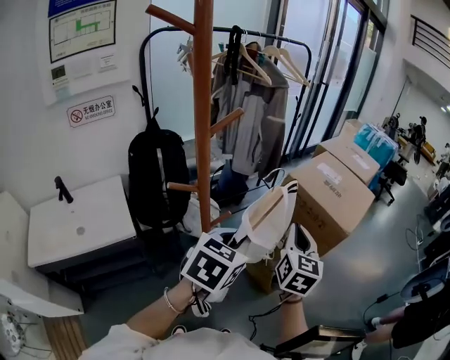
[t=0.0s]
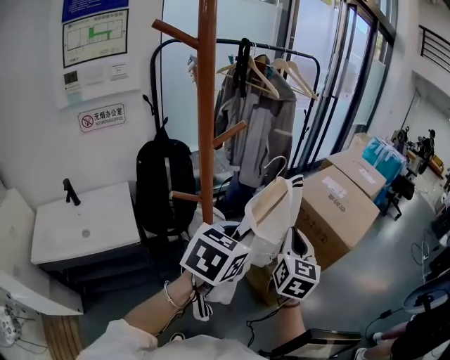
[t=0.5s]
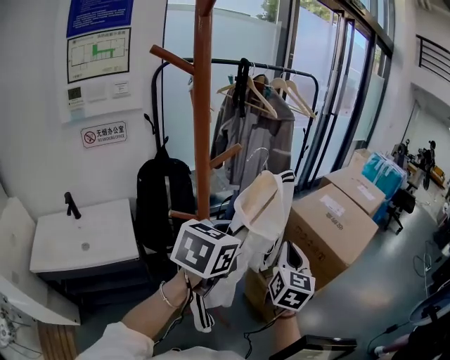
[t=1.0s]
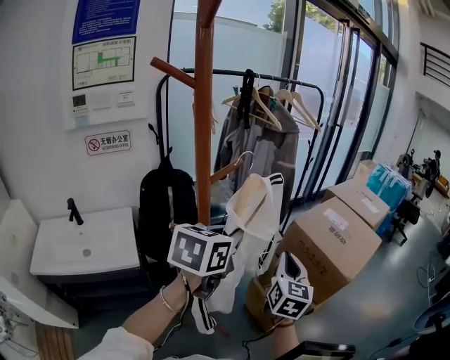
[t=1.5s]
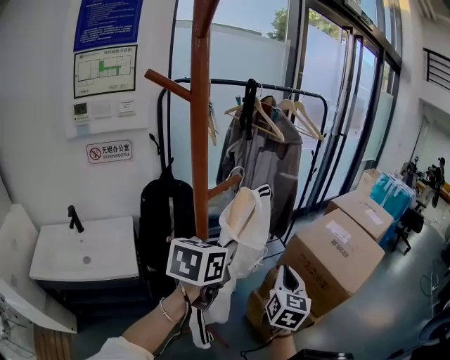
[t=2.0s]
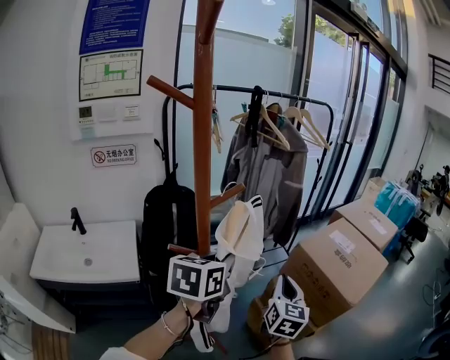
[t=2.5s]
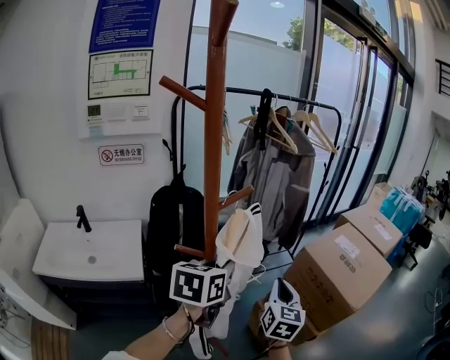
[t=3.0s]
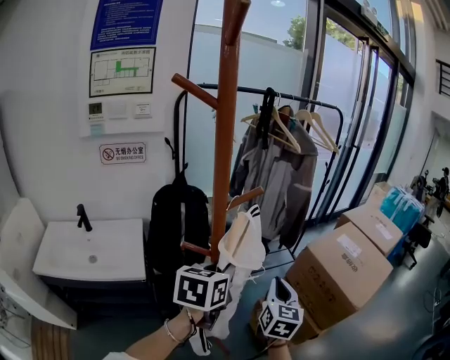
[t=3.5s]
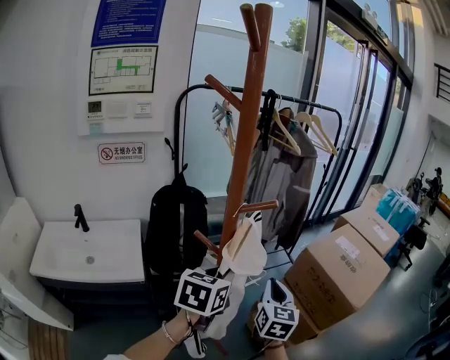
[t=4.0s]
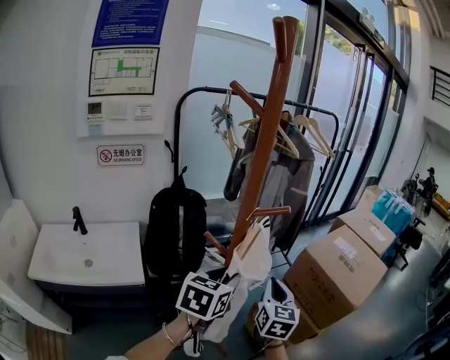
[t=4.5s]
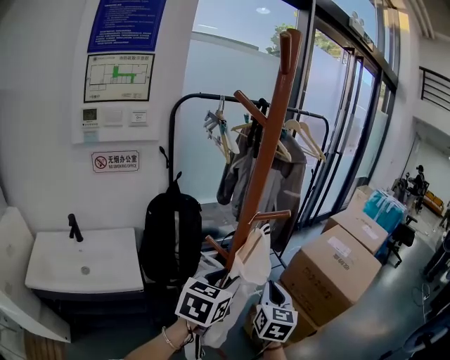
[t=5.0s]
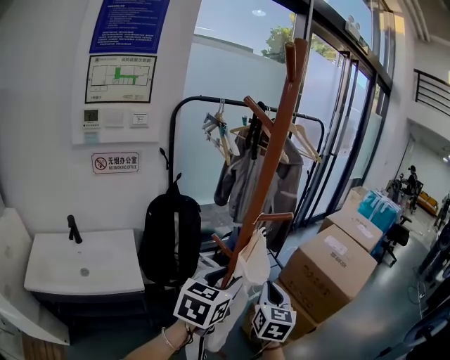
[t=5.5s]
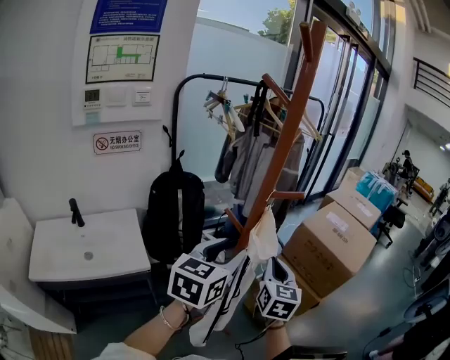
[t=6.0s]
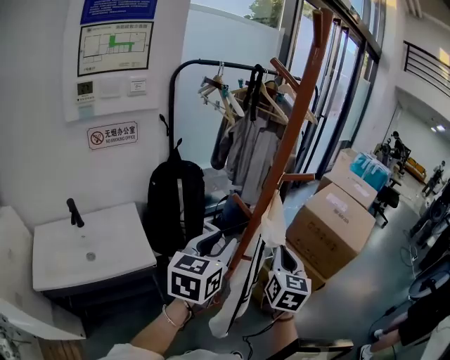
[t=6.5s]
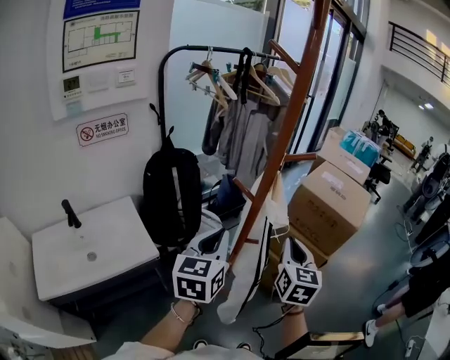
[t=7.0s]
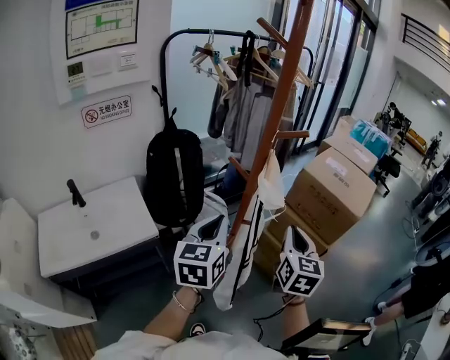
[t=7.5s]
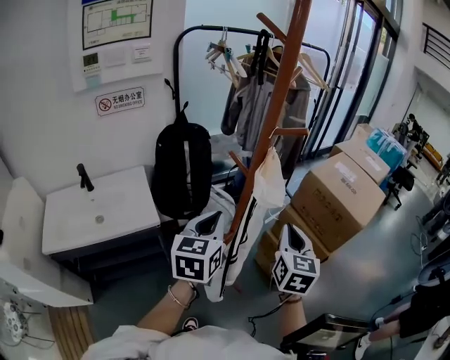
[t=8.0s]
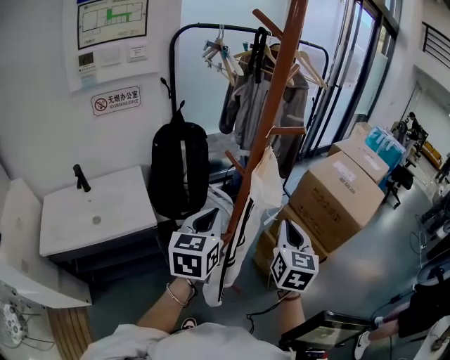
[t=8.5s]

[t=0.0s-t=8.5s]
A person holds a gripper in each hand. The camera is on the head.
t=0.0s to t=2.0s: The left gripper travels forward, to the left and upward by roughly 15 cm, and rotates about 20 degrees. Meanwhile the right gripper heads forward, covering approximately 5 cm.
t=2.0s to t=4.0s: The left gripper is displaced downward by about 5 cm. The right gripper heads to the left, covering roughly 10 cm.
t=4.0s to t=6.5s: The left gripper moves backward and to the left, some 10 cm, and opens up. Meanwhile the right gripper travels backward by approximately 10 cm.
t=6.5s to t=8.5s: The right gripper ends up some 5 cm from where it was; the left gripper travels downward by some 5 cm, and closes its fingers.

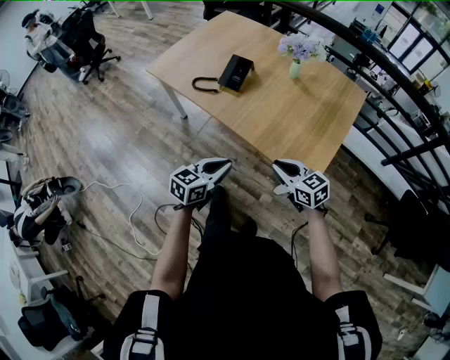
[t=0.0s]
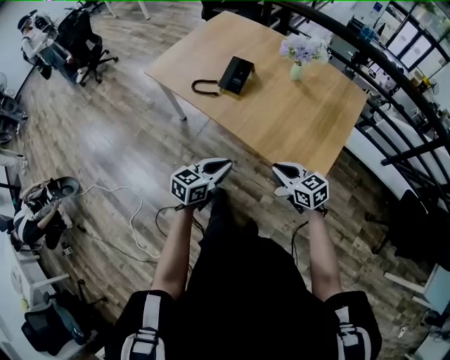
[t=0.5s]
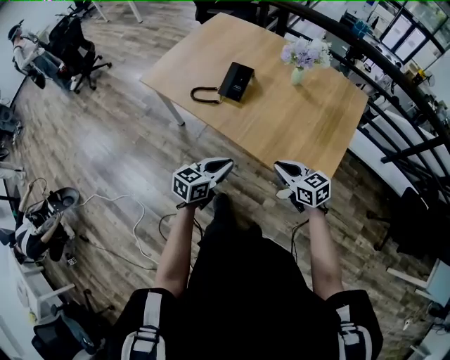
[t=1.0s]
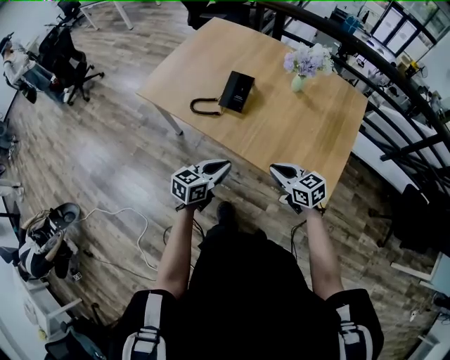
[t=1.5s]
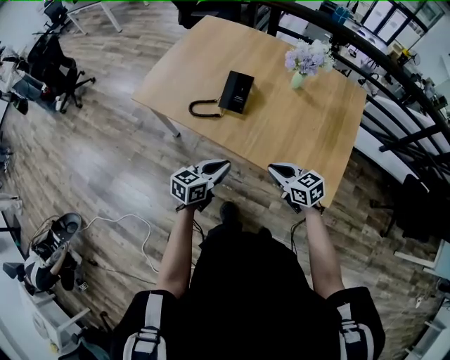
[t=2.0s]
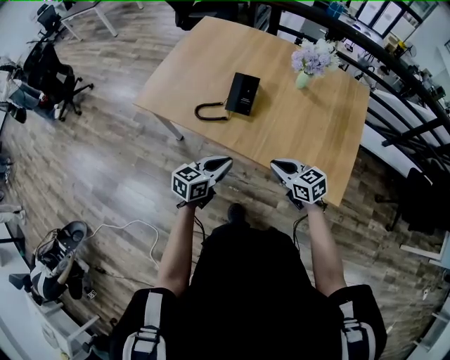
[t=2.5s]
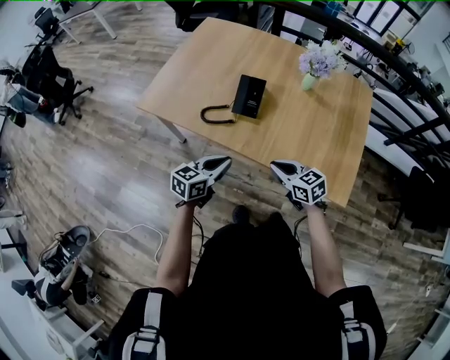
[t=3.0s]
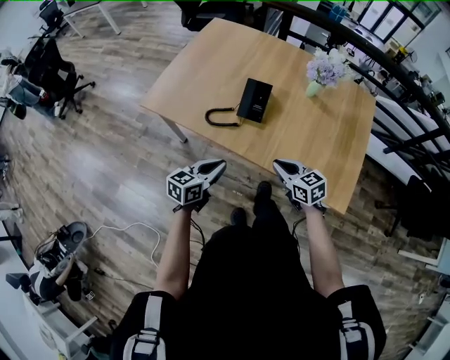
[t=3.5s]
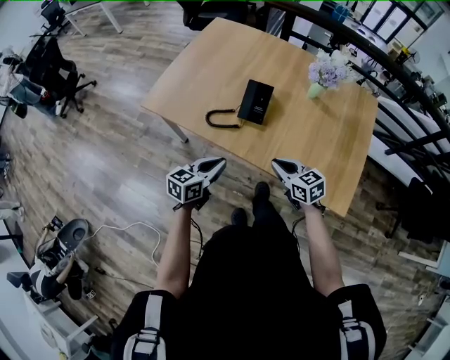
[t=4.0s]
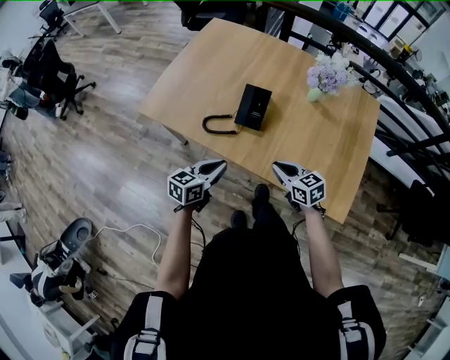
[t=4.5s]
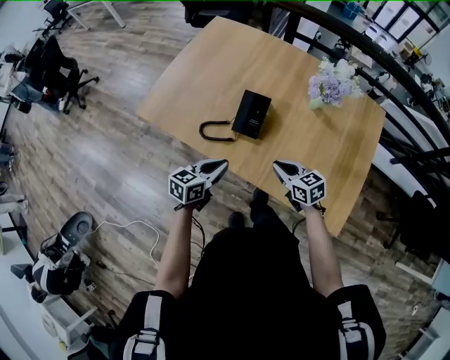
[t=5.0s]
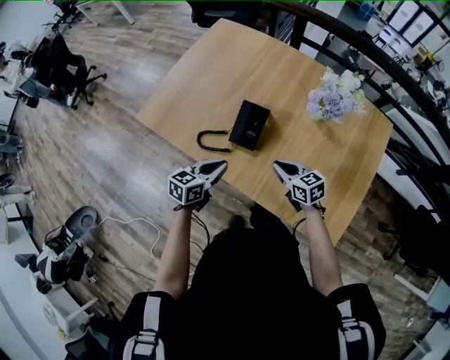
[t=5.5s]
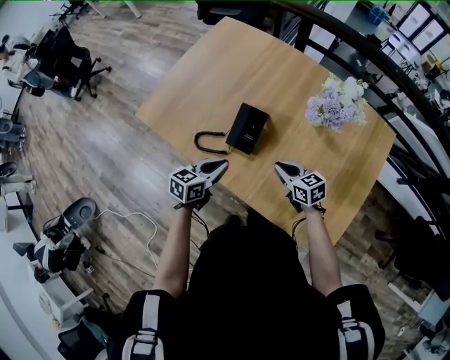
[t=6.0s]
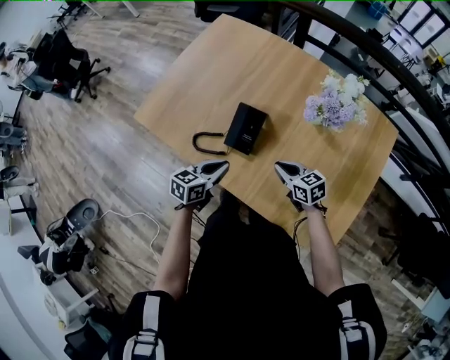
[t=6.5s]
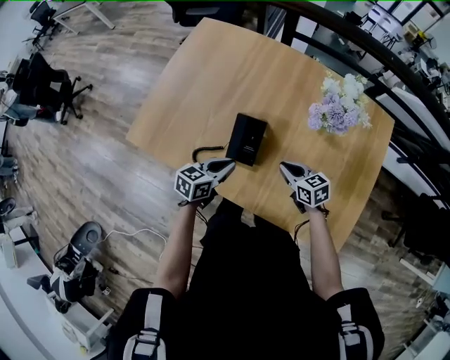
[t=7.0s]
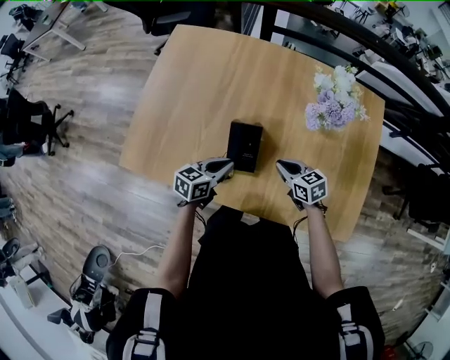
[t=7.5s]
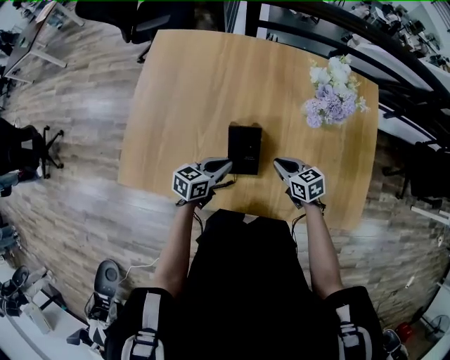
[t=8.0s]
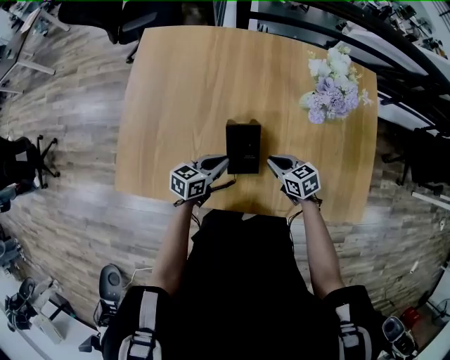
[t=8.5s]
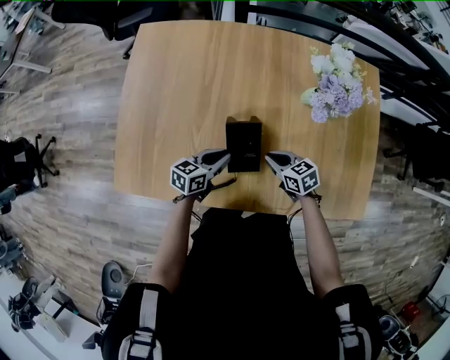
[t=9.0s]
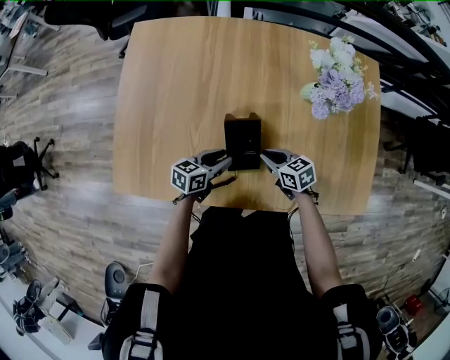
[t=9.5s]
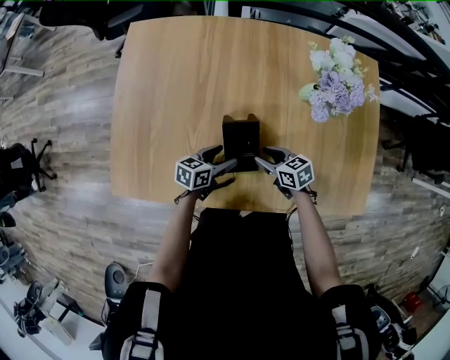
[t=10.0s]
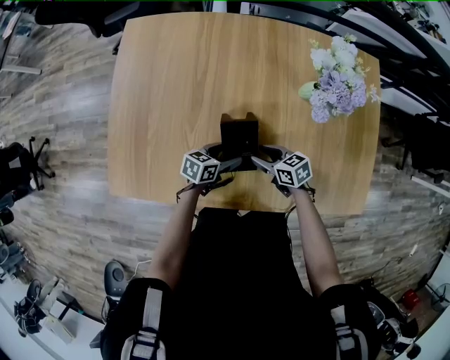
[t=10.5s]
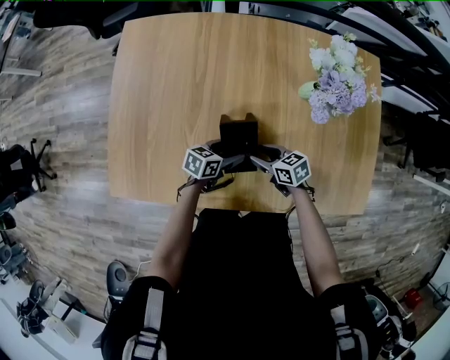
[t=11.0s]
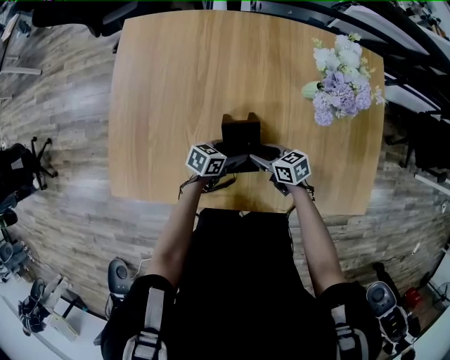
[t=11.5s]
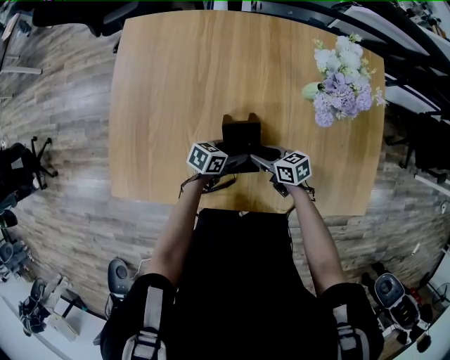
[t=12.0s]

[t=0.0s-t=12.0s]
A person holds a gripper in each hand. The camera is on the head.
t=0.0s to t=2.0s: The two grippers go some 15 cm forward and to the left.
t=2.0s to t=4.0s: Both grippers move to the left and forward, roughly 10 cm.
t=4.0s to t=6.0s: Both grippers move forward and to the right, about 20 cm.
t=6.0s to t=8.0s: The right gripper moves some 10 cm, and swivels approximately 30 degrees; the left gripper changes place by roughly 15 cm, and changes its angle by approximately 30 degrees.
t=8.0s to t=10.0s: The grippers both shift downward by about 5 cm. The right gripper opens, while the left gripper opens up.
t=10.0s to t=12.0s: The left gripper changes place by roughly 5 cm.

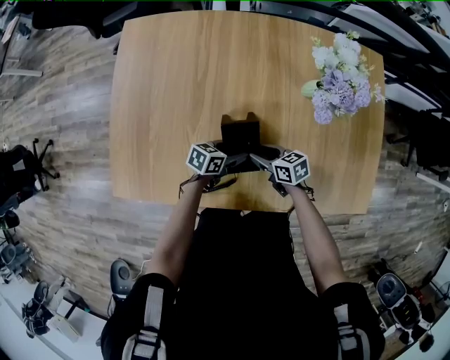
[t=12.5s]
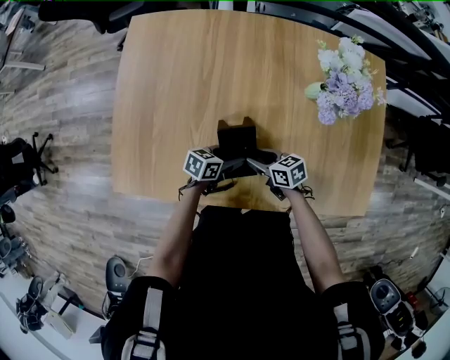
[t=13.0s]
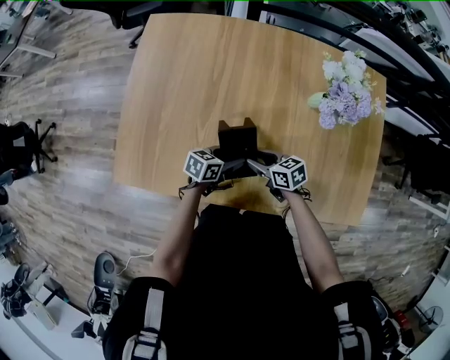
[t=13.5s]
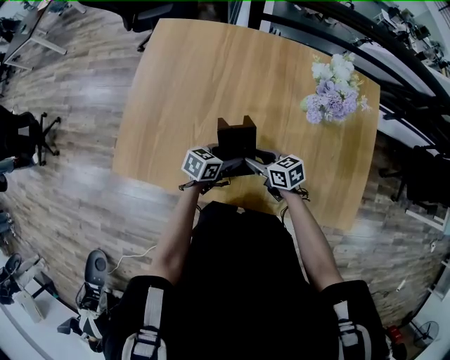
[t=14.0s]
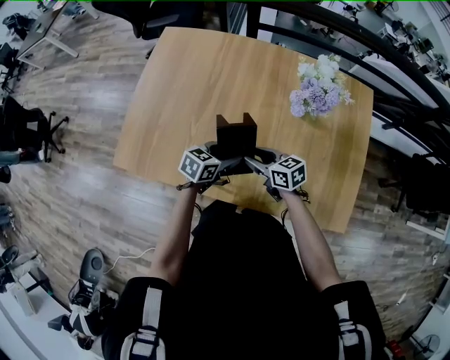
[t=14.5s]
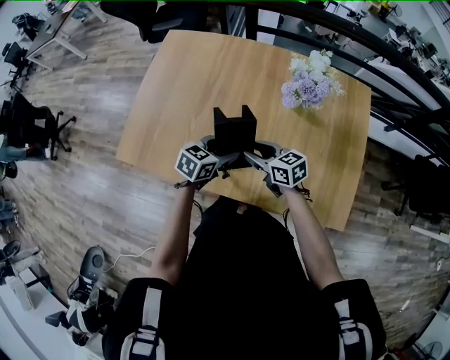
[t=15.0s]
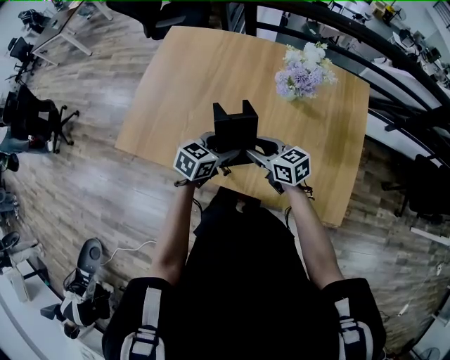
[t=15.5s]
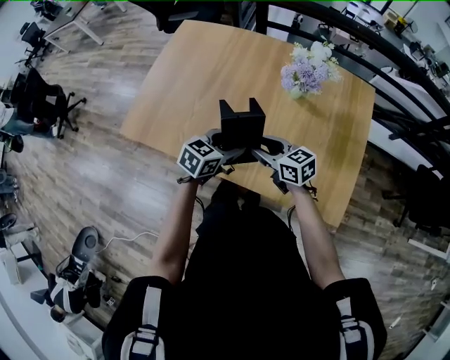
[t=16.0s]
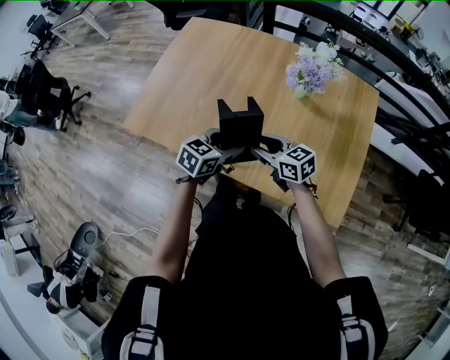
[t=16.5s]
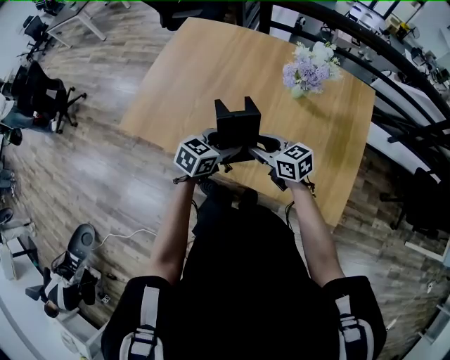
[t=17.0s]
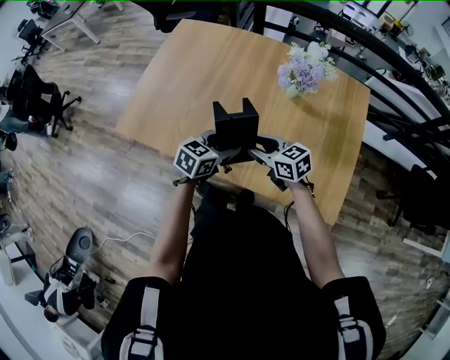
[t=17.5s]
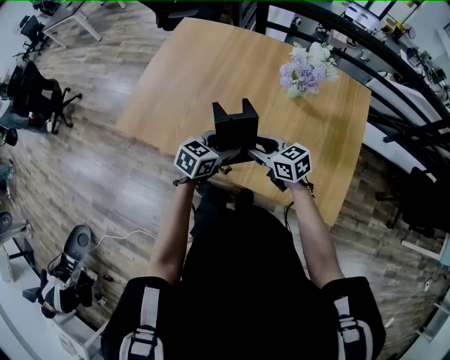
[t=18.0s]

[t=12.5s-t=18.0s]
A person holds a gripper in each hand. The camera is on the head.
t=12.5s to t=14.5s: Both grippers move upward, roughly 15 cm. The left gripper turns by some 20 degrees.
t=14.5s to t=16.0s: The two grippers go about 10 cm backward, upward and to the right.
t=16.0s to t=18.0s: There are only small adjustments of the grippers.

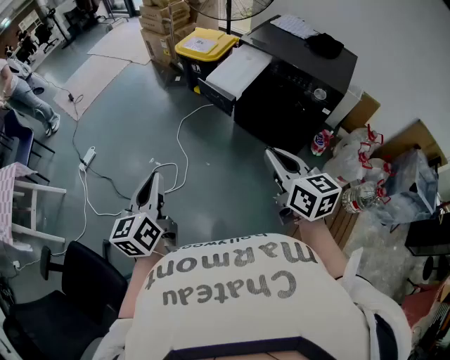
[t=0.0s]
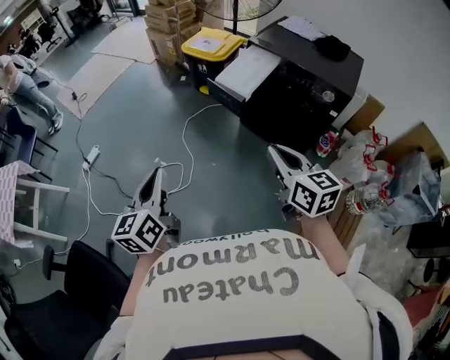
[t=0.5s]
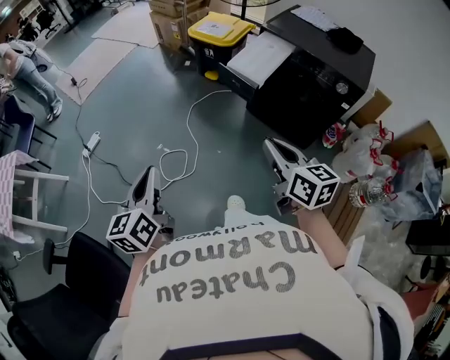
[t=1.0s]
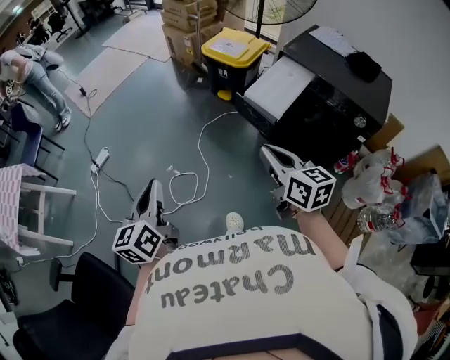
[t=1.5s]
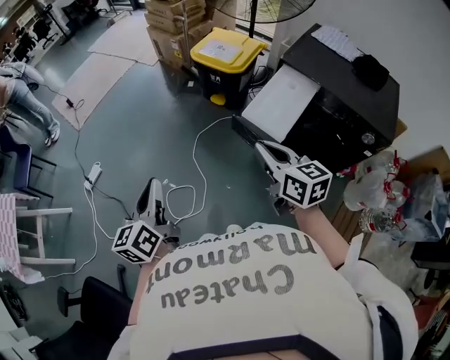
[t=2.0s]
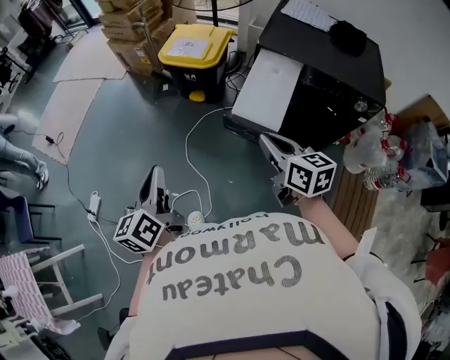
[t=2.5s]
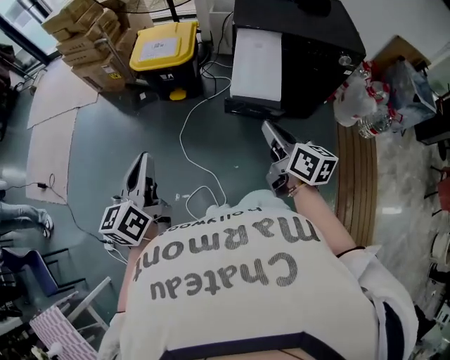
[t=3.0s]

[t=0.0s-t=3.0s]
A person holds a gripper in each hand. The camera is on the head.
t=0.0s to t=1.5s: The two grippers go some 20 cm forward and to the left.
t=1.5s to t=3.0s: The right gripper changes place by about 15 cm, and swivels about 40 degrees. The left gripper moves approximately 30 cm, and changes its angle by approximately 40 degrees.
